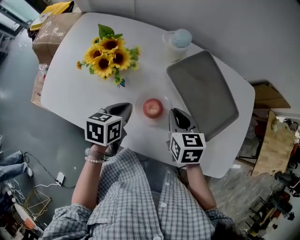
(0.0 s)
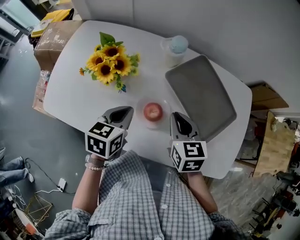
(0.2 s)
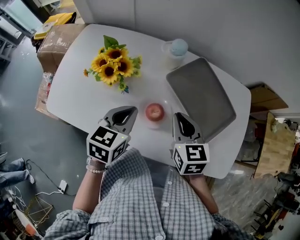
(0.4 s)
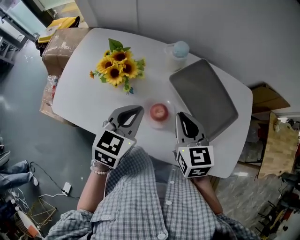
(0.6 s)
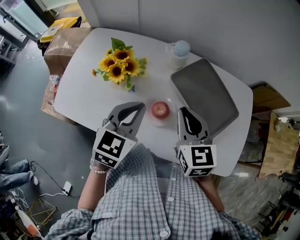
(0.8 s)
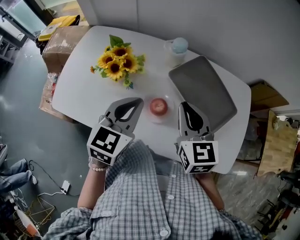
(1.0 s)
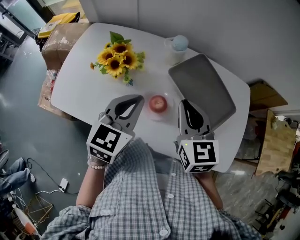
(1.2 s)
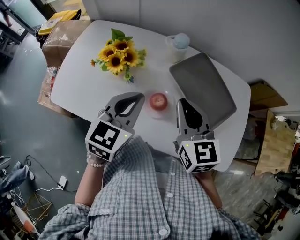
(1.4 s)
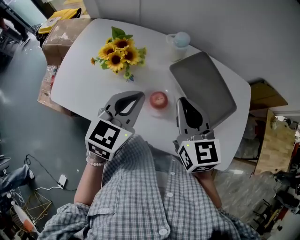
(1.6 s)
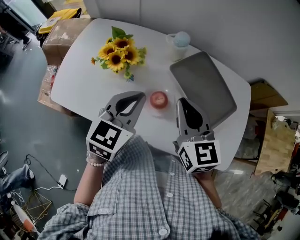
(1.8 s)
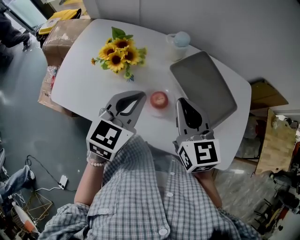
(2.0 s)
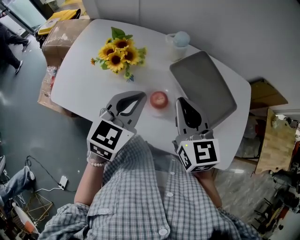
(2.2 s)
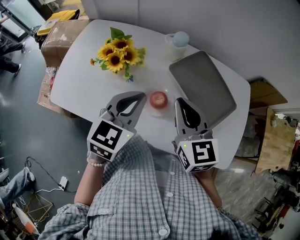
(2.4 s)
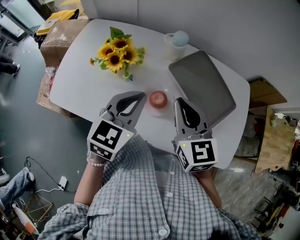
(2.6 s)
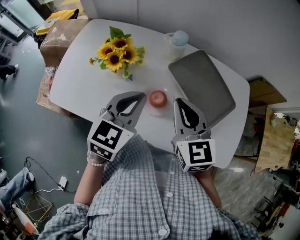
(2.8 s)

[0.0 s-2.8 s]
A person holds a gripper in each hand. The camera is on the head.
0.0 to 1.4 s: The grippers both shift upward by roughly 15 cm. The right gripper changes its angle by approximately 30 degrees. The left gripper rotates roughly 40 degrees.
1.4 to 2.8 s: The grippers move only a little.

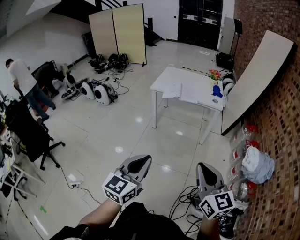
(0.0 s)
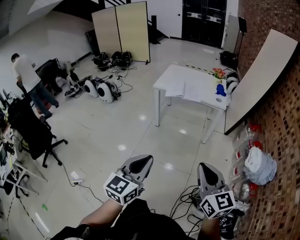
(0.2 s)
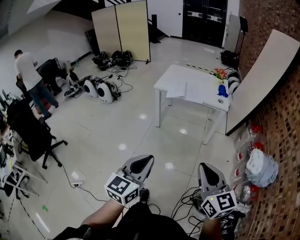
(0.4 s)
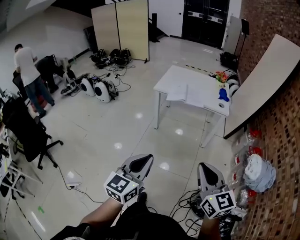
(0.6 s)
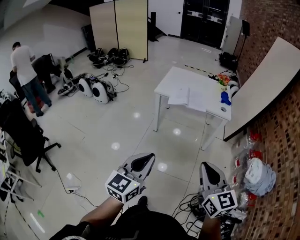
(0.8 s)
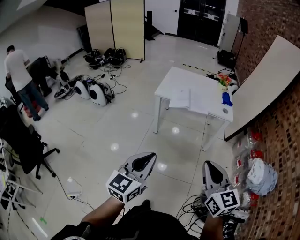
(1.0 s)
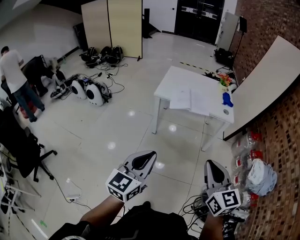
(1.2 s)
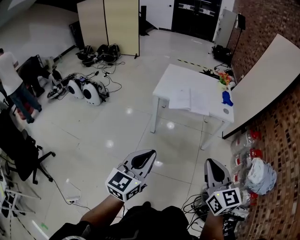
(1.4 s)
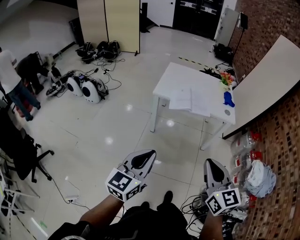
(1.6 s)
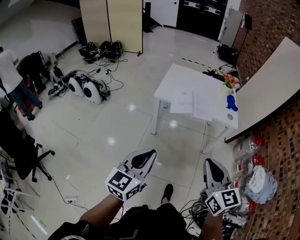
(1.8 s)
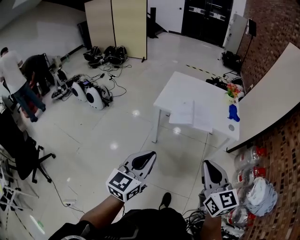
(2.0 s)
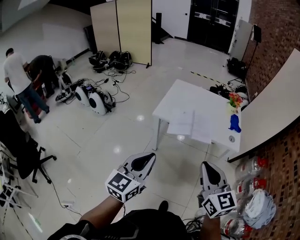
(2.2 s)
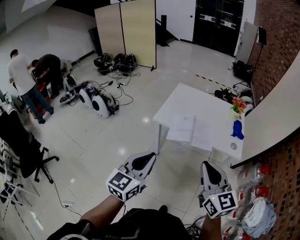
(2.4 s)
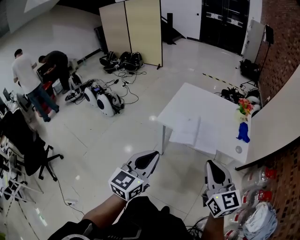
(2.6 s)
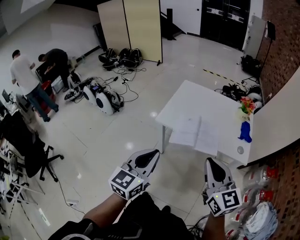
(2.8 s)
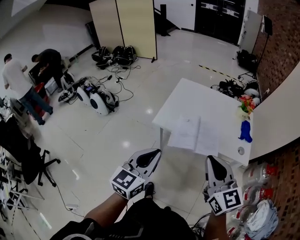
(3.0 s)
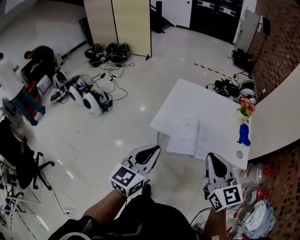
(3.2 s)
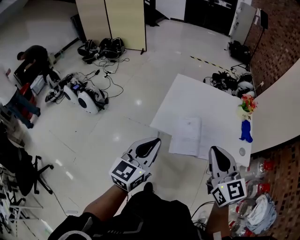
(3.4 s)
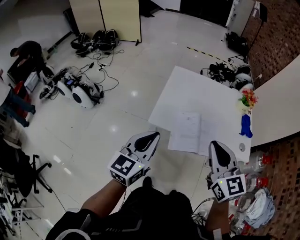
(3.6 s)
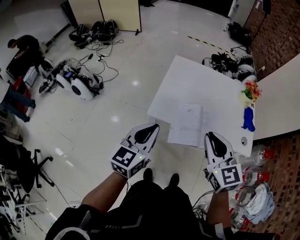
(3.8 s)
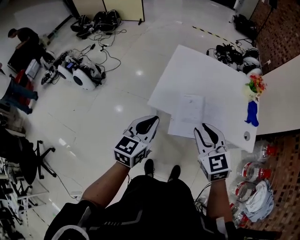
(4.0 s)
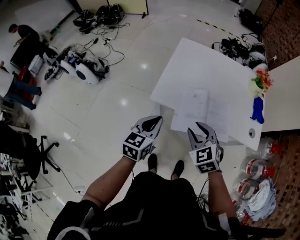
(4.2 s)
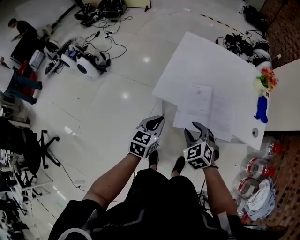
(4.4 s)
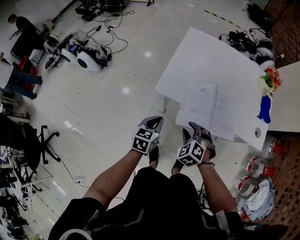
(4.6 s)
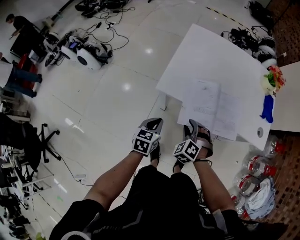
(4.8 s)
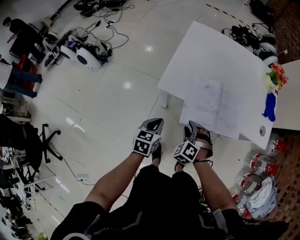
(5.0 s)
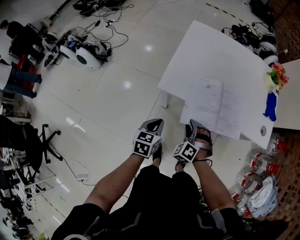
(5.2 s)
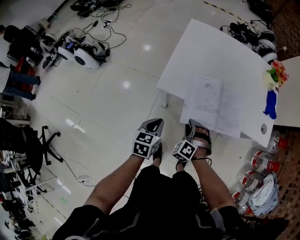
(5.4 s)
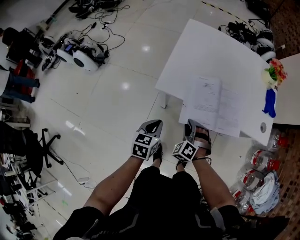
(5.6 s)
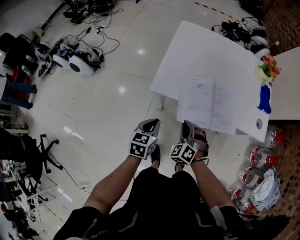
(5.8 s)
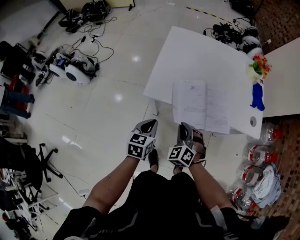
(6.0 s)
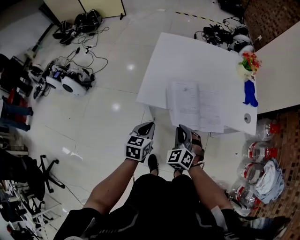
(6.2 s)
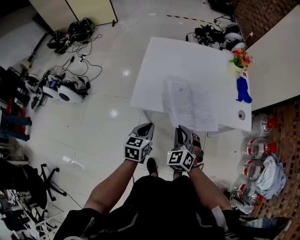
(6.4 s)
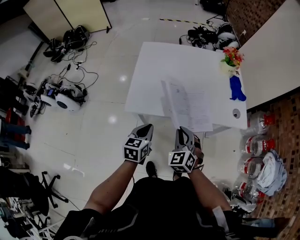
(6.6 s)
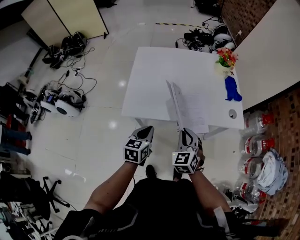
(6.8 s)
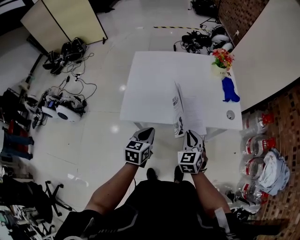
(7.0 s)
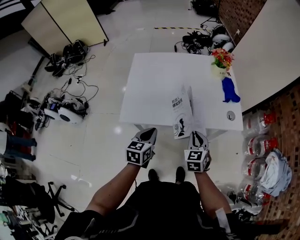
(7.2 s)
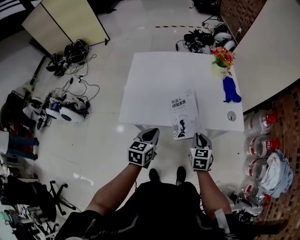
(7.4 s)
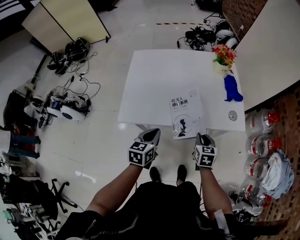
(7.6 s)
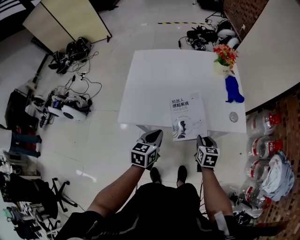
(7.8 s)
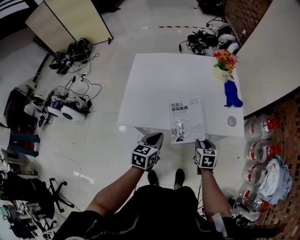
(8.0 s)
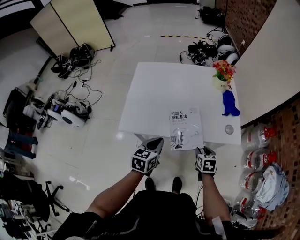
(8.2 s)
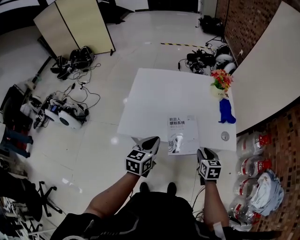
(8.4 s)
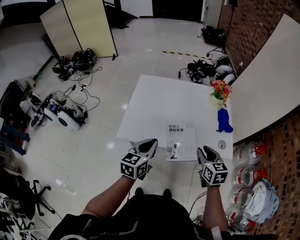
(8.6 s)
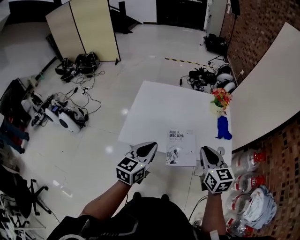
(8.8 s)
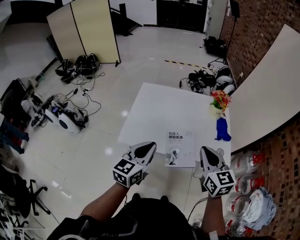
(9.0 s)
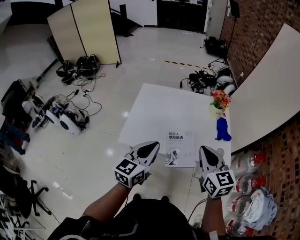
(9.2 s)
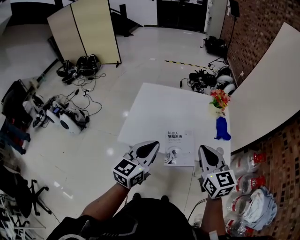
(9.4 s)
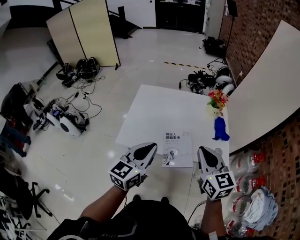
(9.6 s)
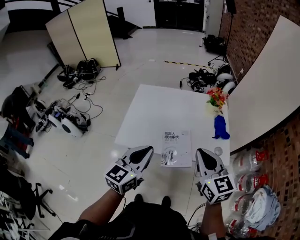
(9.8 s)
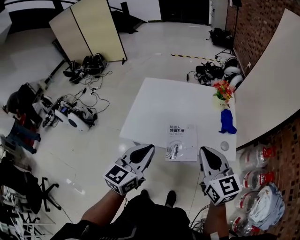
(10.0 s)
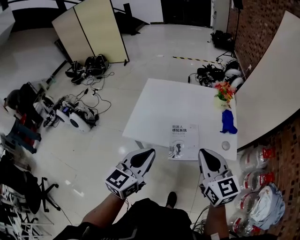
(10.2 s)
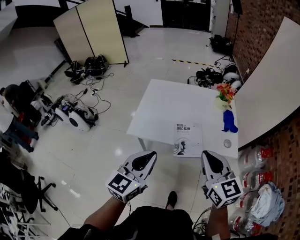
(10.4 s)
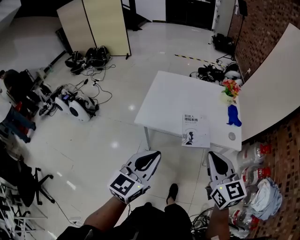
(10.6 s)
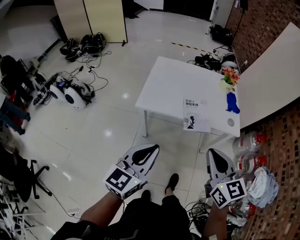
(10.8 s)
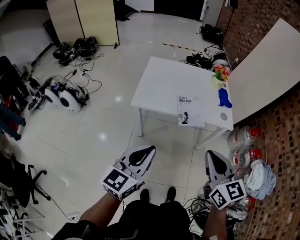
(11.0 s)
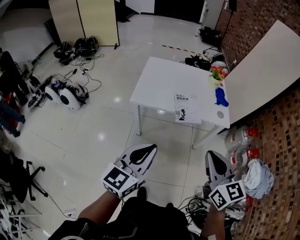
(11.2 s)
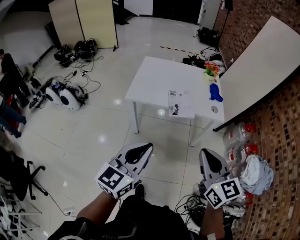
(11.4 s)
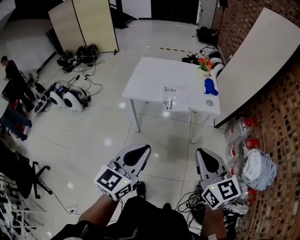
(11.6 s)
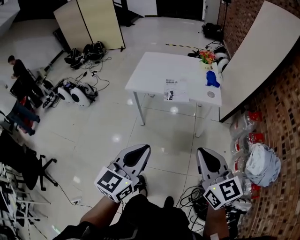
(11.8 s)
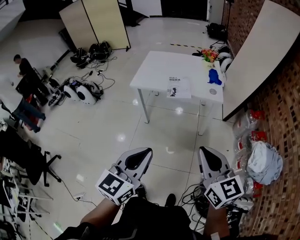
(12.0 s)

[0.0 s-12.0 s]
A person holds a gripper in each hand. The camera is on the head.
0.0 to 1.6 s: Both grippers move forward and to the left, about 30 cm.
1.6 to 3.0 s: The grippers both shift forward by approximately 35 cm.
3.0 to 4.4 s: The grippers both shift downward and forward by about 30 cm. The left gripper swivels some 20 degrees, while the right gripper angles its fingers downward, by some 40 degrees, and opens up.
4.4 to 6.0 s: Both grippers travel together downward, about 5 cm. The right gripper swivels roughly 20 degrees, and closes up.
6.0 to 7.6 s: The right gripper moves to the right, roughly 25 cm, and rotates around the line of its fingers by some 60 degrees, clockwise from behind. Meanwhile the left gripper goes some 20 cm to the right and forward.
7.6 to 9.0 s: The left gripper heads upward, covering some 20 cm, and rotates approximately 20 degrees. The right gripper moves upward, roughly 30 cm, turns by approximately 30 degrees, and opens, then closes again.
9.0 to 10.4 s: Both grippers travel together backward, about 10 cm.
10.4 to 12.0 s: Both grippers are carried backward, roughly 40 cm.

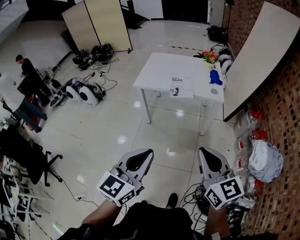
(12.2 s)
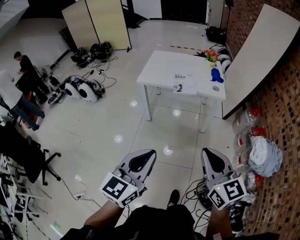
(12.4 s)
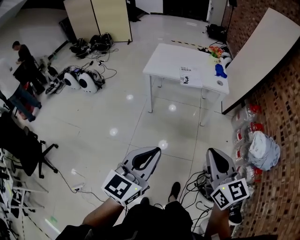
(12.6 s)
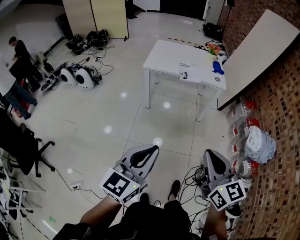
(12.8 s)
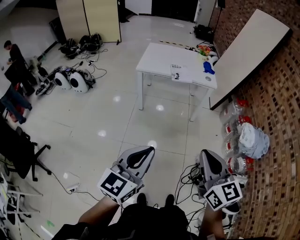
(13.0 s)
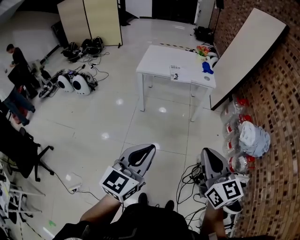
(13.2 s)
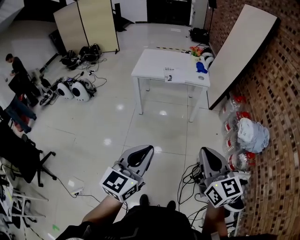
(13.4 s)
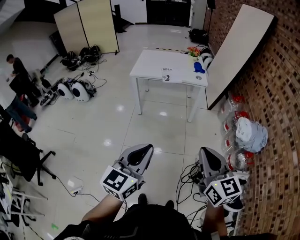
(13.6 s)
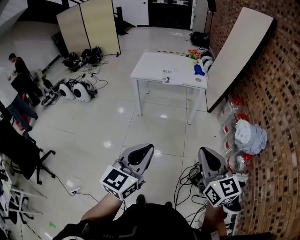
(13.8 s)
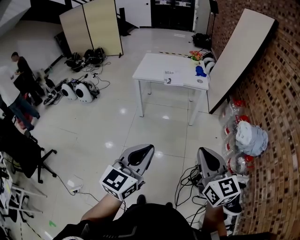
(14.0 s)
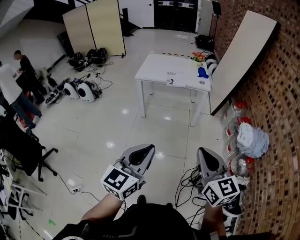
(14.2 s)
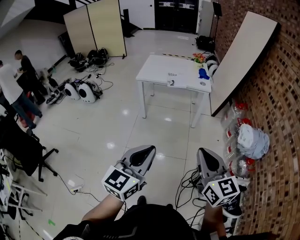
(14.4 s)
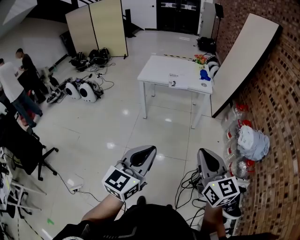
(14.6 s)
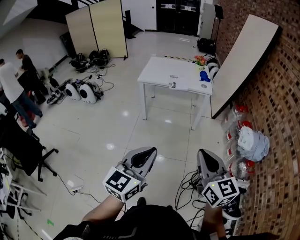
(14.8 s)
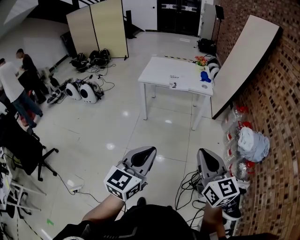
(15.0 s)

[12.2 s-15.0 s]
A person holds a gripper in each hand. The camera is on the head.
12.2 to 13.6 s: Both grippers travel together backward, about 25 cm.
13.6 to 15.0 s: The grippers move only a little.

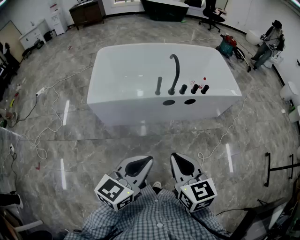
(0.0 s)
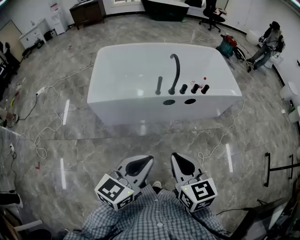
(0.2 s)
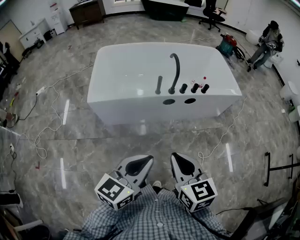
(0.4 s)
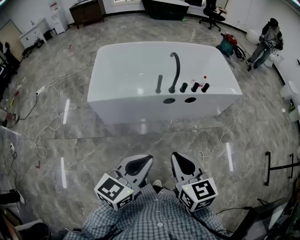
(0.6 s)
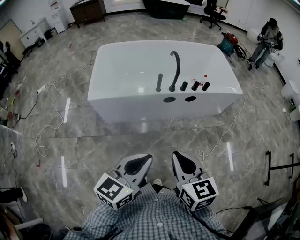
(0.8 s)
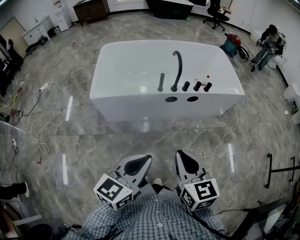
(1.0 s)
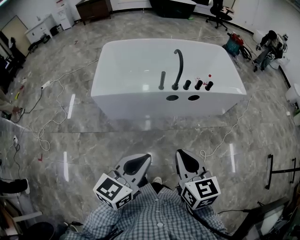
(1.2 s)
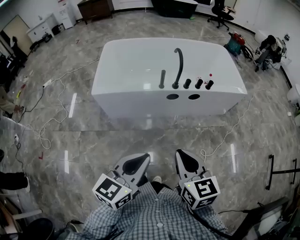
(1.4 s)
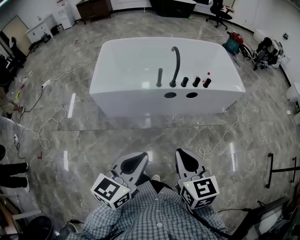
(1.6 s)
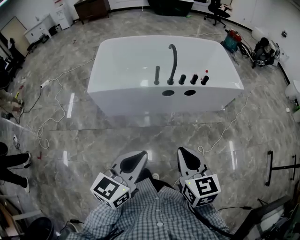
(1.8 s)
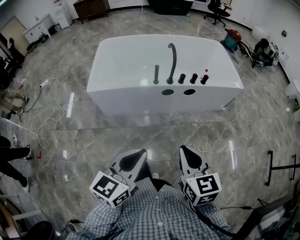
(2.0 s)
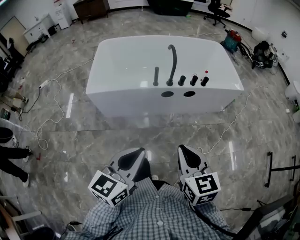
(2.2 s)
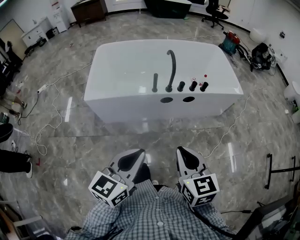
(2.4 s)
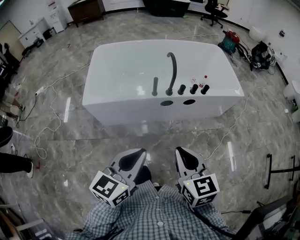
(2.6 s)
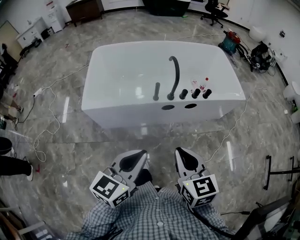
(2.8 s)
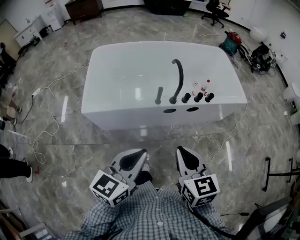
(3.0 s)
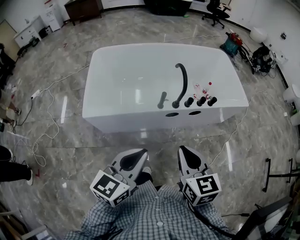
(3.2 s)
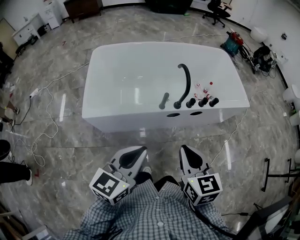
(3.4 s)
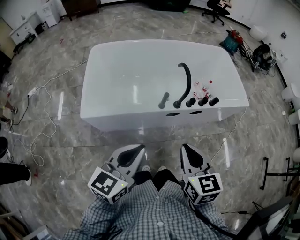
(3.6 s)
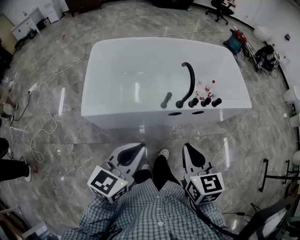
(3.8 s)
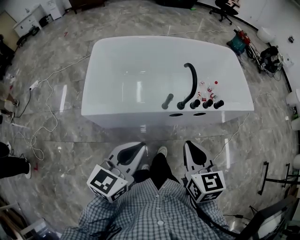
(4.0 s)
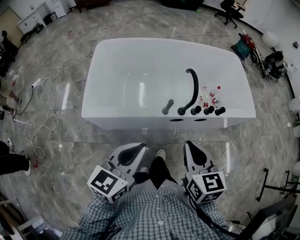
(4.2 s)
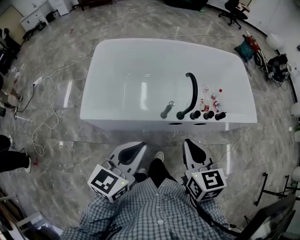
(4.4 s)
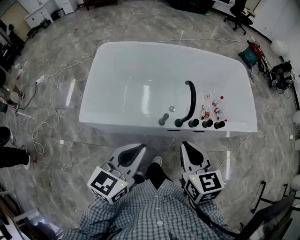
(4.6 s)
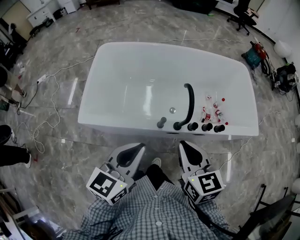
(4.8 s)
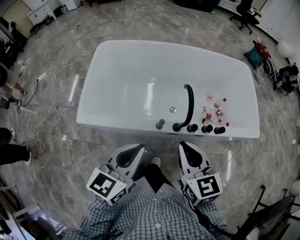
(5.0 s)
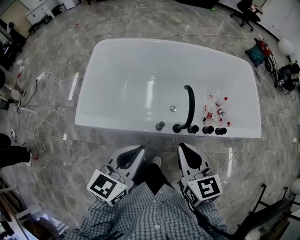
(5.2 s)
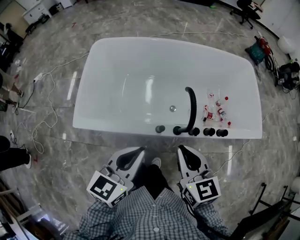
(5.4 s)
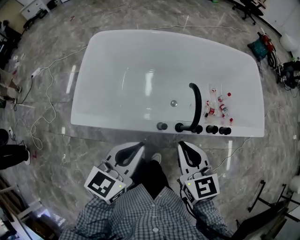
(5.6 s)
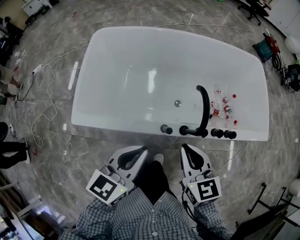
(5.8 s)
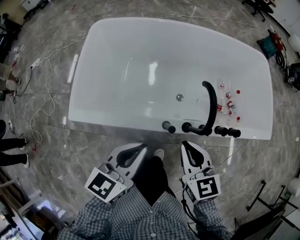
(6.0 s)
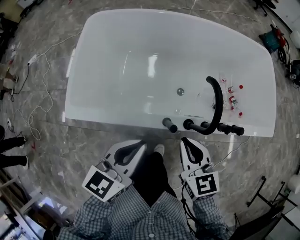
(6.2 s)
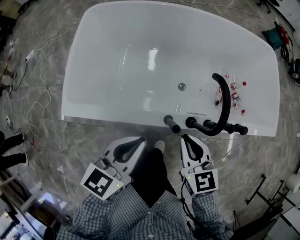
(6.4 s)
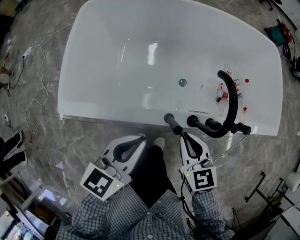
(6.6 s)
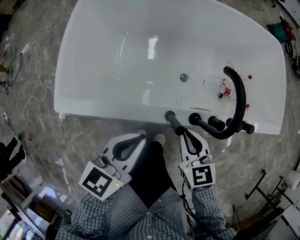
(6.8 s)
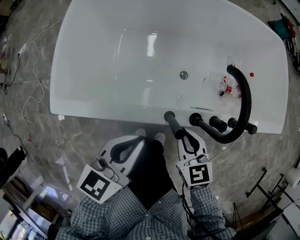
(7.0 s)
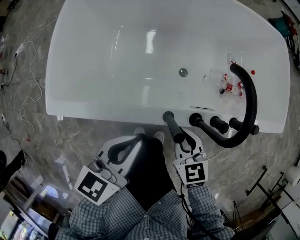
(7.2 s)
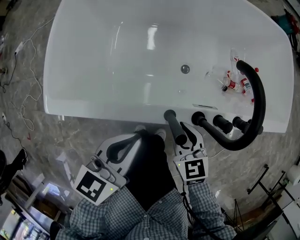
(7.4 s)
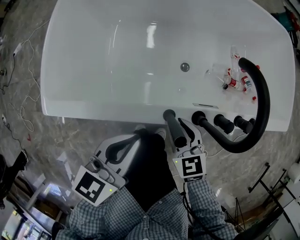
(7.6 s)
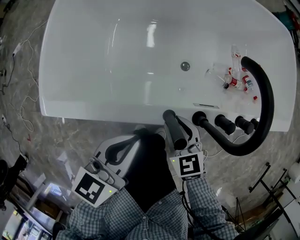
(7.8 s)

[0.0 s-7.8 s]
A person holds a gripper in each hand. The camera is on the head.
0.0 to 1.6 s: The right gripper travels to the right by roughly 5 cm.
1.6 to 3.2 s: The grippers both shift forward by about 25 cm.
3.2 to 4.6 s: The two grippers go about 20 cm forward.
4.6 to 6.2 s: The two grippers go about 25 cm downward and forward.
6.2 to 7.8 s: The two grippers go some 20 cm downward. The right gripper opens up.
